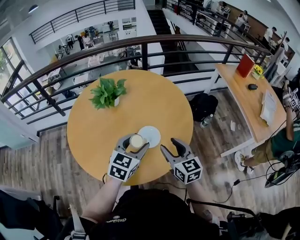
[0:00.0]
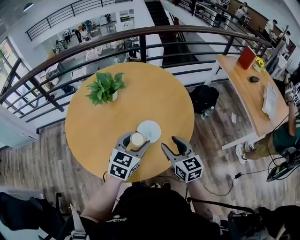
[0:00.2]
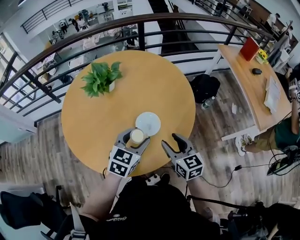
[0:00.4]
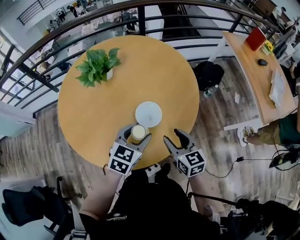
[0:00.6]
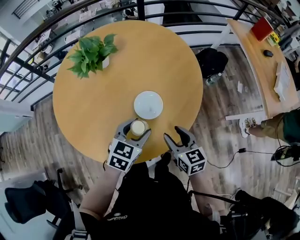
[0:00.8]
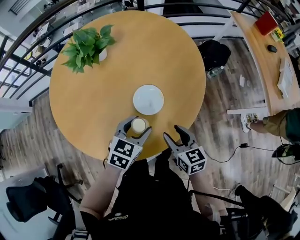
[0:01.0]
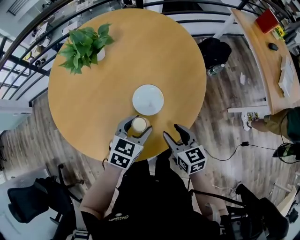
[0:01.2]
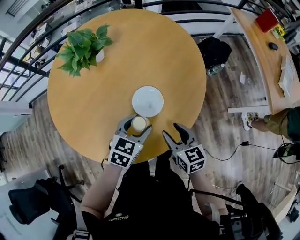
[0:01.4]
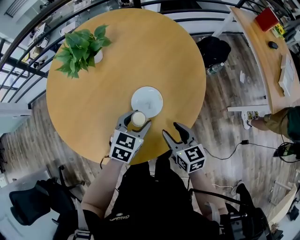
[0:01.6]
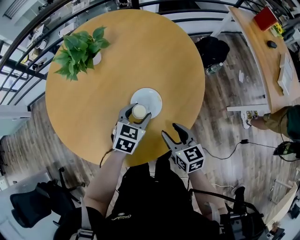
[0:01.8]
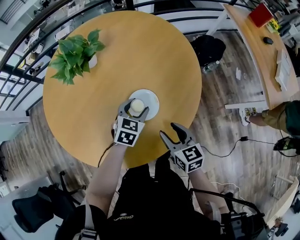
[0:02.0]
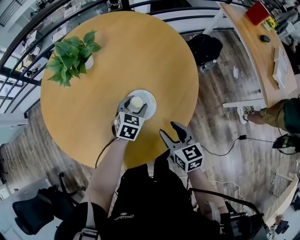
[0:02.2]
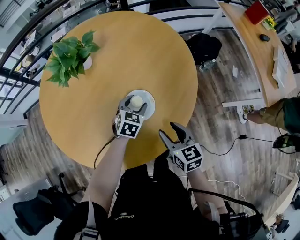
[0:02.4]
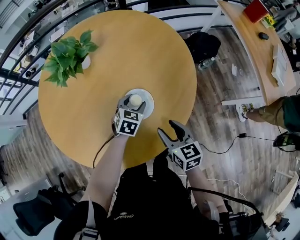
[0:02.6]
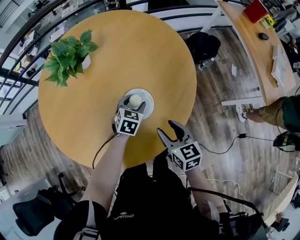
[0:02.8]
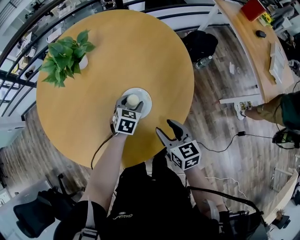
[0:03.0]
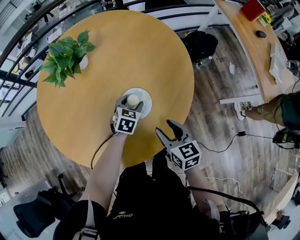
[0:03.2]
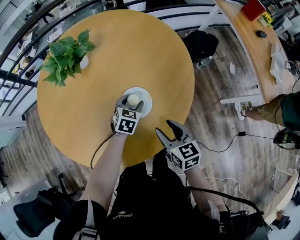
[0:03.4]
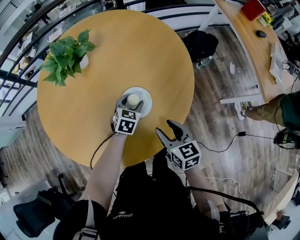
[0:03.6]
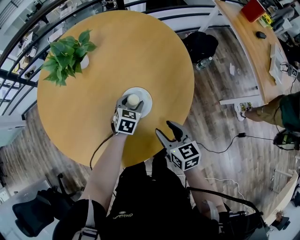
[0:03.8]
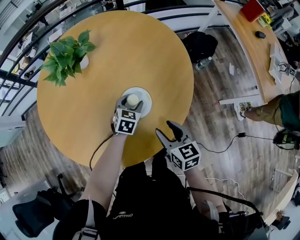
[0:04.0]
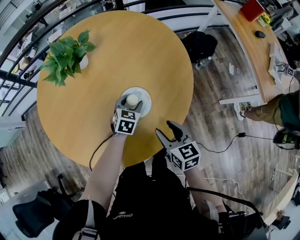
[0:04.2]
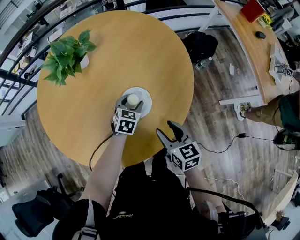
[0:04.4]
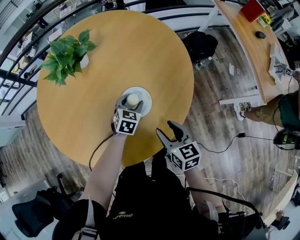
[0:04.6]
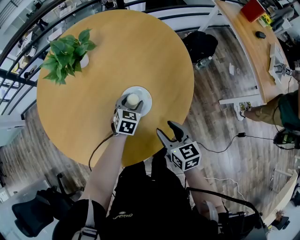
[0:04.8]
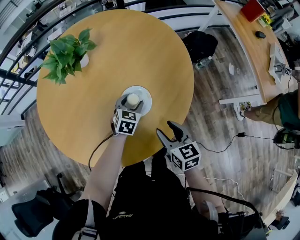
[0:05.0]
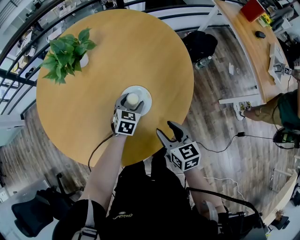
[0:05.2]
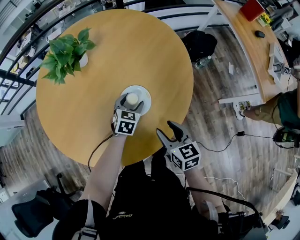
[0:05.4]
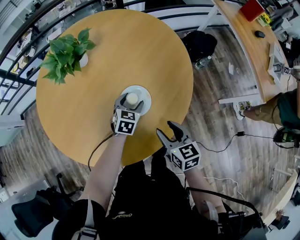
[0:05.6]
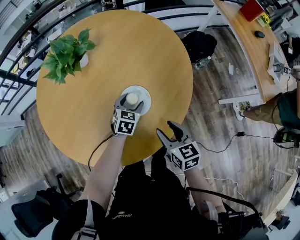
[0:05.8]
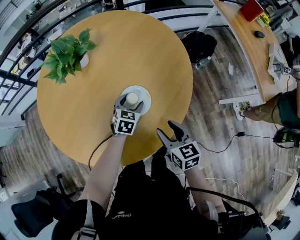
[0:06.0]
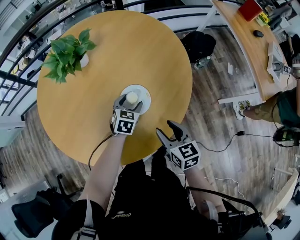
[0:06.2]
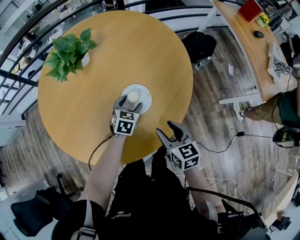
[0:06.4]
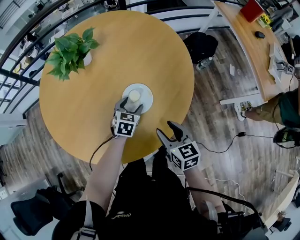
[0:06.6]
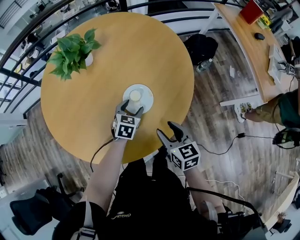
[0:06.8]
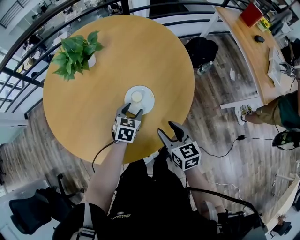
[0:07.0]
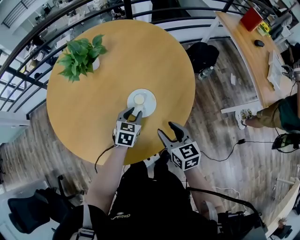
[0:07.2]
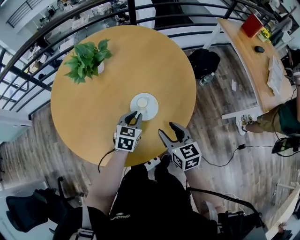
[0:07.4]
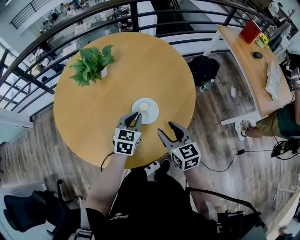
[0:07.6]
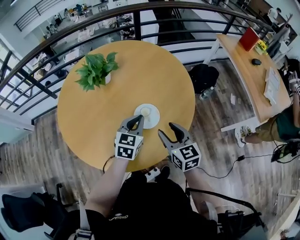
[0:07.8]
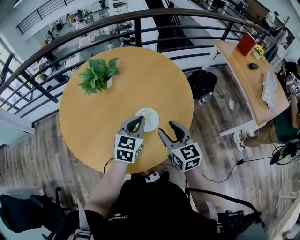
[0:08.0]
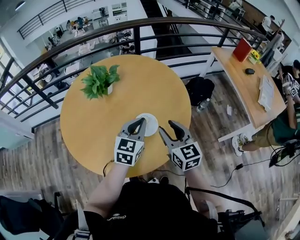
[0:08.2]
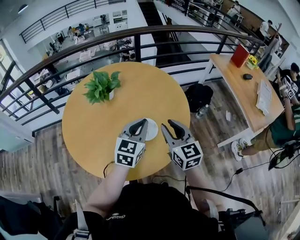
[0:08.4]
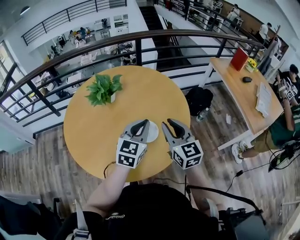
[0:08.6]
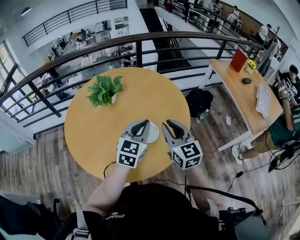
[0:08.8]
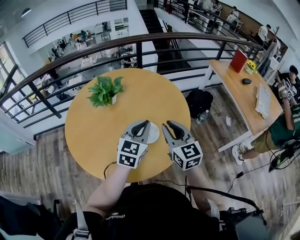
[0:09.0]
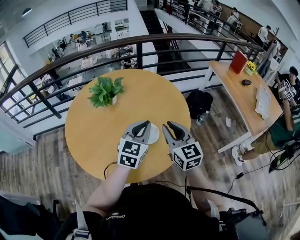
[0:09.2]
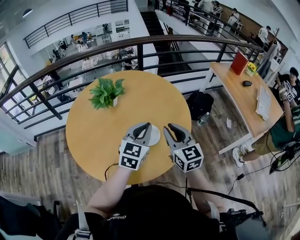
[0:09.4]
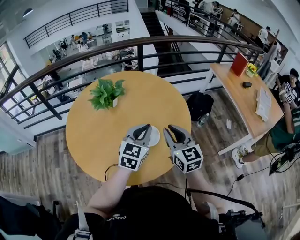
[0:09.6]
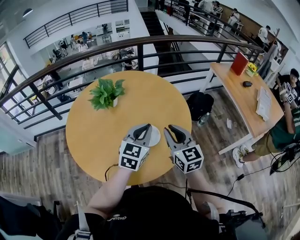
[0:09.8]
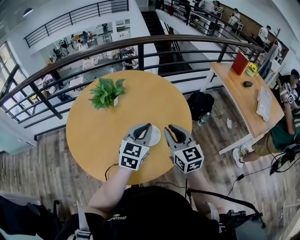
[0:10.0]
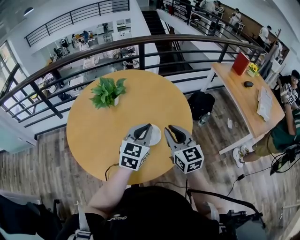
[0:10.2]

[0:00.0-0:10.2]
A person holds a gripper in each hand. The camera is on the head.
0:00.0 to 0:01.4: The two grippers go about 15 cm downward. The right gripper turns by approximately 20 degrees.
0:01.4 to 0:03.0: The left gripper shifts approximately 15 cm forward and downward.
0:03.0 to 0:04.4: The two grippers keep their place.
0:04.4 to 0:05.8: Both grippers stay put.
0:05.8 to 0:07.2: The left gripper travels backward by approximately 5 cm, and closes up.
0:07.2 to 0:08.8: Both grippers move upward, roughly 25 cm. The left gripper swivels roughly 30 degrees, and closes its fingers; the right gripper swivels roughly 30 degrees, and closes.
0:08.8 to 0:10.2: Both grippers stay about where they are.

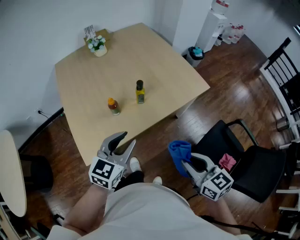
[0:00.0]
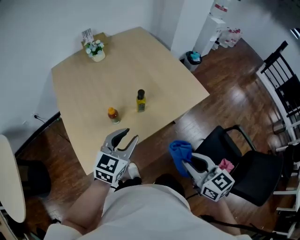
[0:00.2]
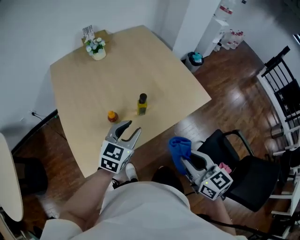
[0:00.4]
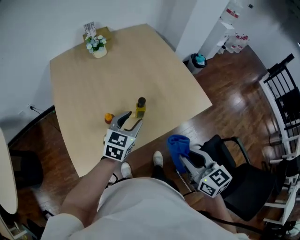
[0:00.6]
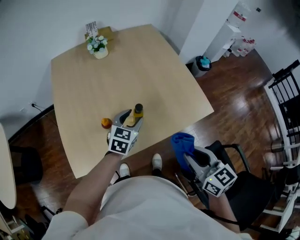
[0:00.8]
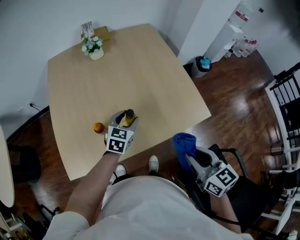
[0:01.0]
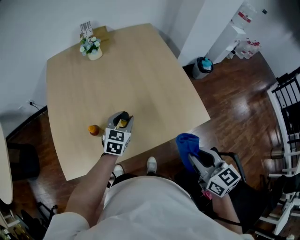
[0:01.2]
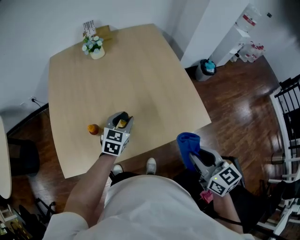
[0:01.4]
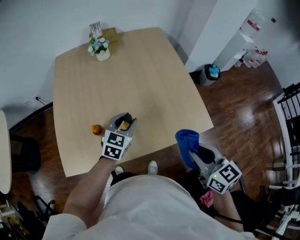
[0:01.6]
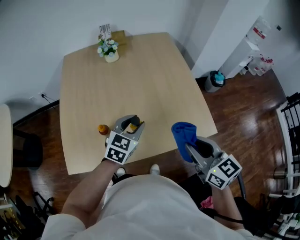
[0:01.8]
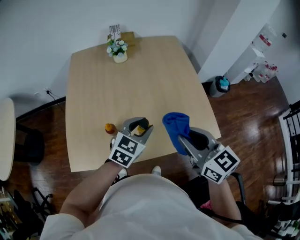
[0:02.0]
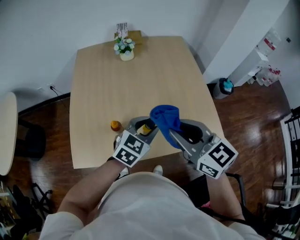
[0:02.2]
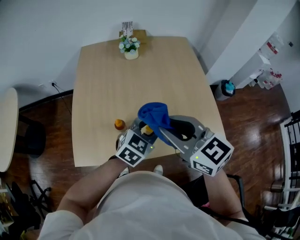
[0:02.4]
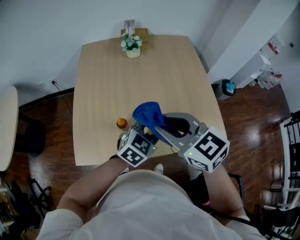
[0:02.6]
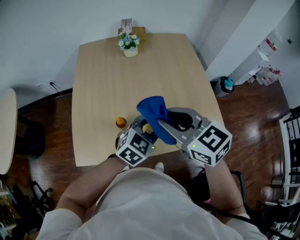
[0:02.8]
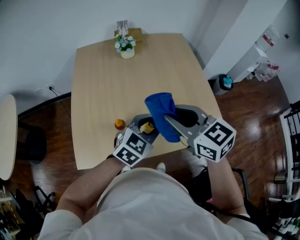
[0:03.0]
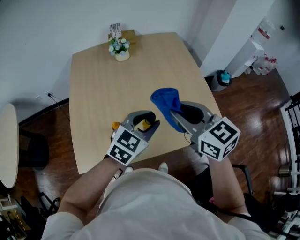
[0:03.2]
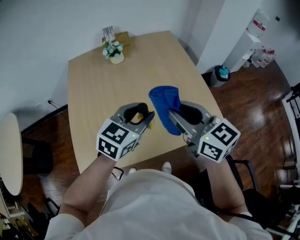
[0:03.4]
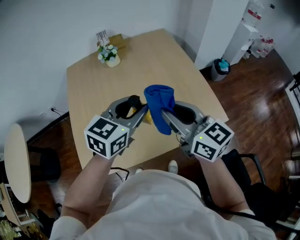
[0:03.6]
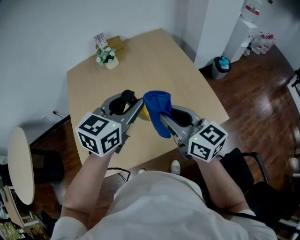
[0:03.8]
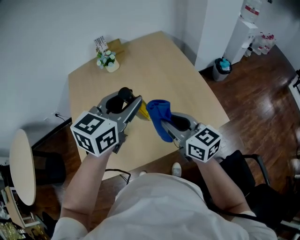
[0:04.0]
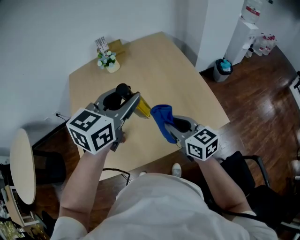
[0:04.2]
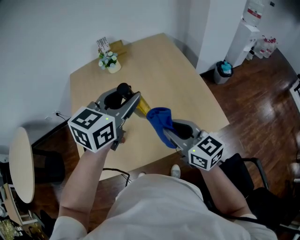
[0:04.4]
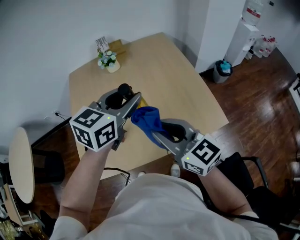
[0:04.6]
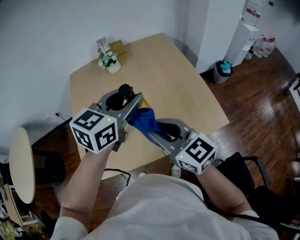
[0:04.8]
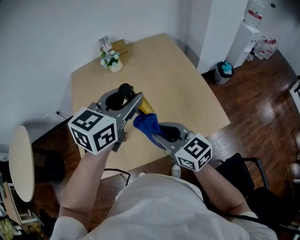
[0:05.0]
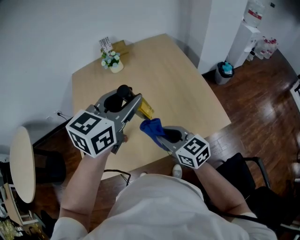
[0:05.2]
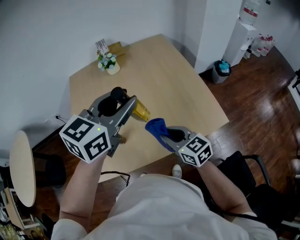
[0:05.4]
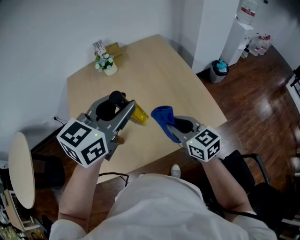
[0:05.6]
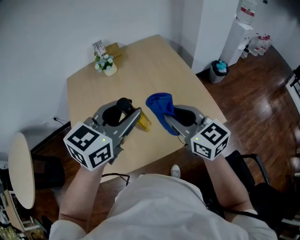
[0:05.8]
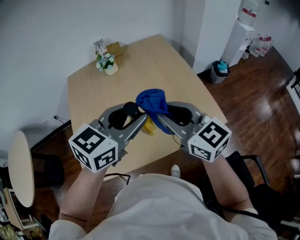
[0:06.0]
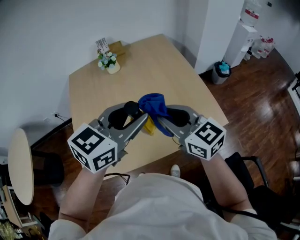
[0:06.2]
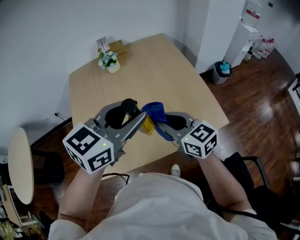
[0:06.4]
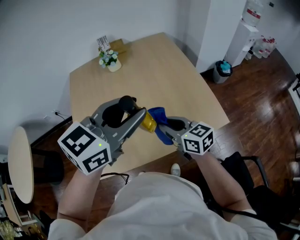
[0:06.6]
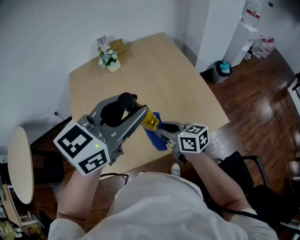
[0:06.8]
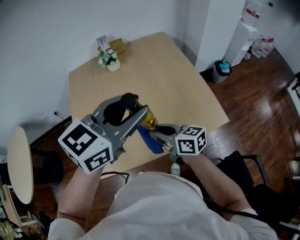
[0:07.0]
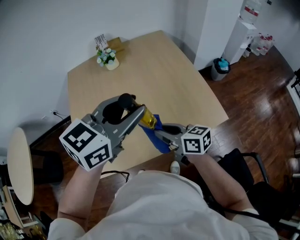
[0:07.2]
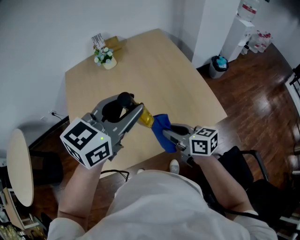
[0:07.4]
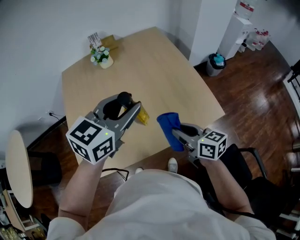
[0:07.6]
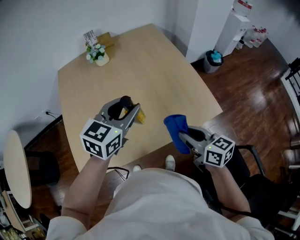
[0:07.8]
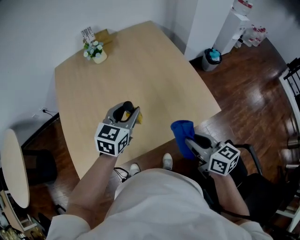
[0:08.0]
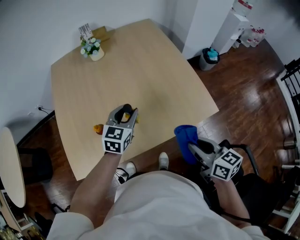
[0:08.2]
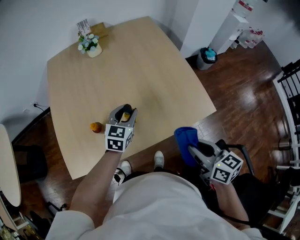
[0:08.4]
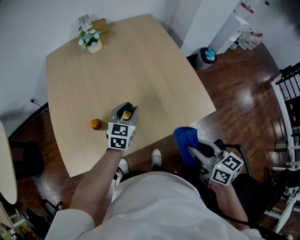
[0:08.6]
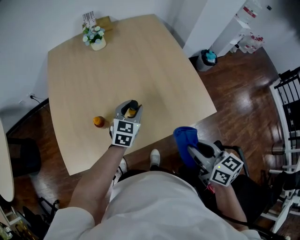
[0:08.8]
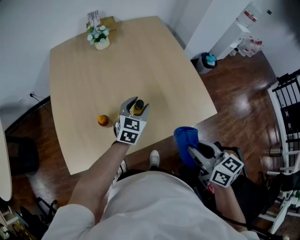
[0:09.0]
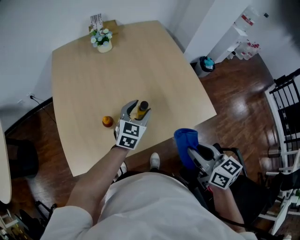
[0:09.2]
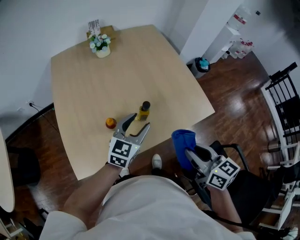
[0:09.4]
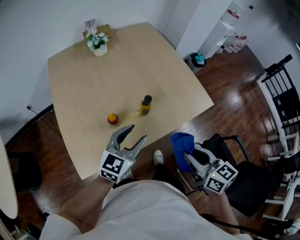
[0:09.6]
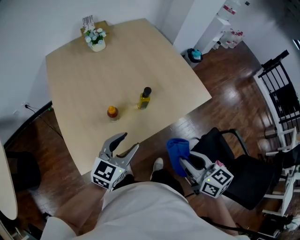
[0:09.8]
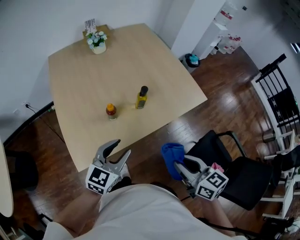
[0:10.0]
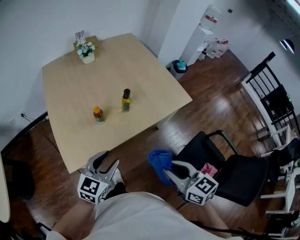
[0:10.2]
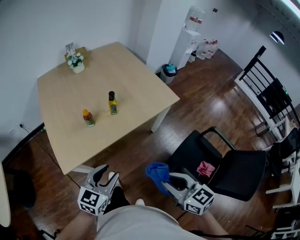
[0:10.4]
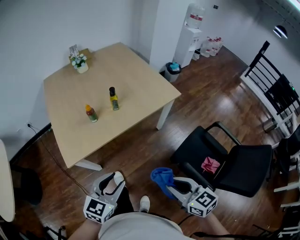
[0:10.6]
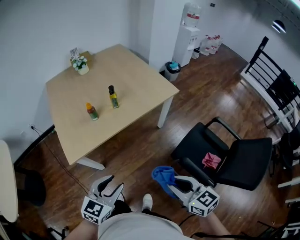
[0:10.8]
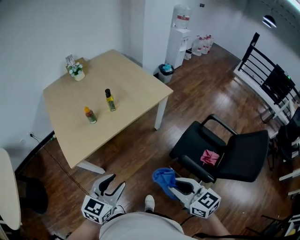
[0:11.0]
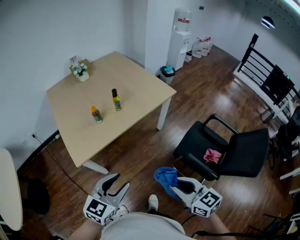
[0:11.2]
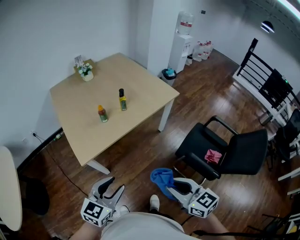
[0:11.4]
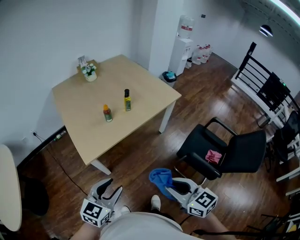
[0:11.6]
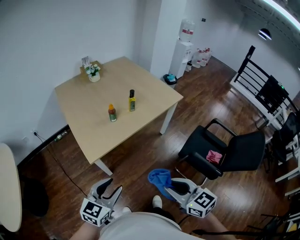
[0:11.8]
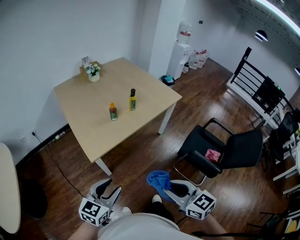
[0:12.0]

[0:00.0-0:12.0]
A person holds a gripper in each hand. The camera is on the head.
0:00.0 to 0:01.6: The left gripper moves forward, roughly 25 cm, rotates about 20 degrees, and opens and closes again; the right gripper travels forward and to the right by roughly 30 cm.
0:01.6 to 0:03.0: The right gripper shifts approximately 25 cm to the left, forward and upward, and swivels approximately 20 degrees, while the left gripper goes about 10 cm upward and backward.
0:03.0 to 0:04.4: The left gripper travels upward and forward by about 20 cm. The right gripper goes some 10 cm to the right and downward.
0:04.4 to 0:06.0: The right gripper goes up and down, about 15 cm each way, reversing 2 times, while the left gripper is displaced backward by roughly 5 cm.
0:06.0 to 0:07.6: The right gripper moves downward, some 15 cm, and swivels approximately 30 degrees.
0:07.6 to 0:09.0: The right gripper travels backward by some 10 cm. The left gripper goes approximately 25 cm downward.
0:09.0 to 0:10.4: Both grippers travel together backward, approximately 35 cm.
0:10.4 to 0:12.0: The two grippers go about 25 cm backward and to the left.

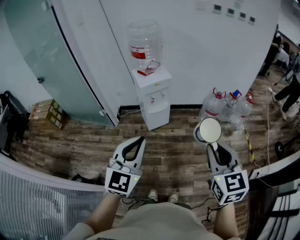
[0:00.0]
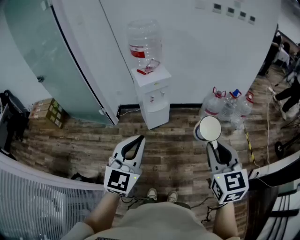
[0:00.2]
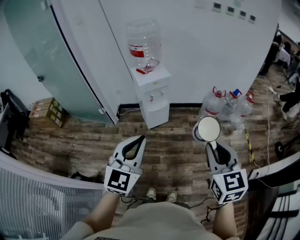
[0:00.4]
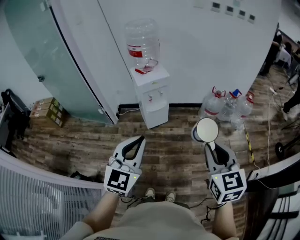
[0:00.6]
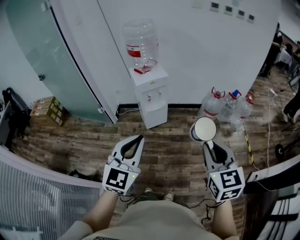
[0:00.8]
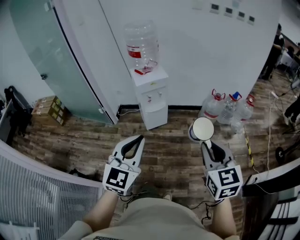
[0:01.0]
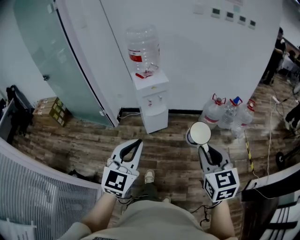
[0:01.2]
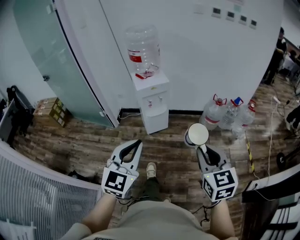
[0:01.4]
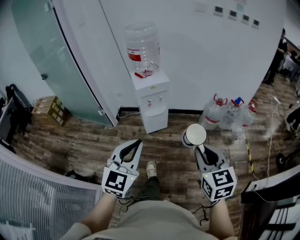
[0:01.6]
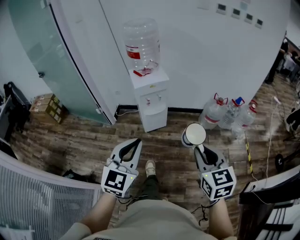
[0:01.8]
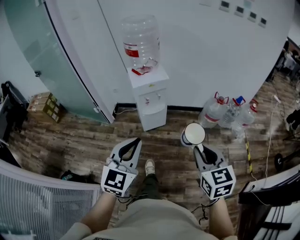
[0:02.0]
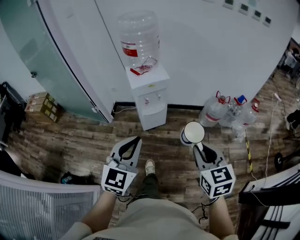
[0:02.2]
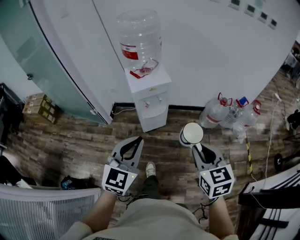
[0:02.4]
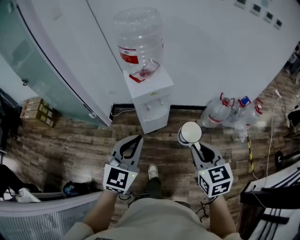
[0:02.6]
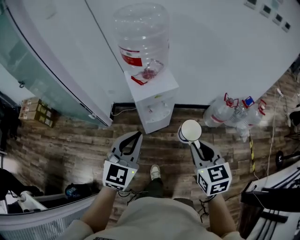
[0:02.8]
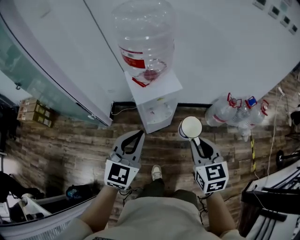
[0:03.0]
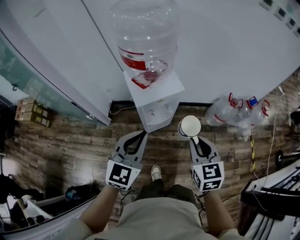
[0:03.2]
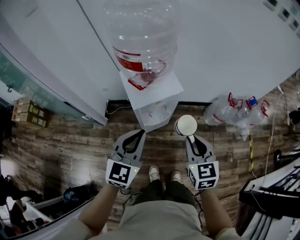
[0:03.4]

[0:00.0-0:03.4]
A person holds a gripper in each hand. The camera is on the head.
0:00.0 to 0:01.6: The left gripper shifts approximately 5 cm to the right. The right gripper moves downward, some 5 cm.
0:01.6 to 0:03.4: Both grippers are carried forward, approximately 40 cm.
